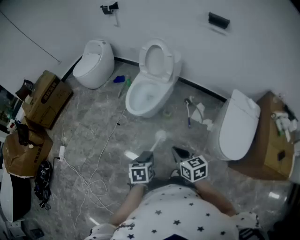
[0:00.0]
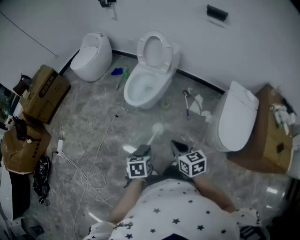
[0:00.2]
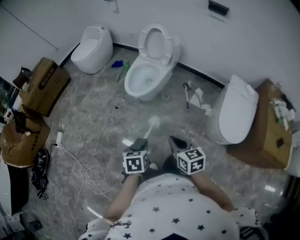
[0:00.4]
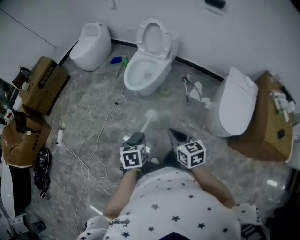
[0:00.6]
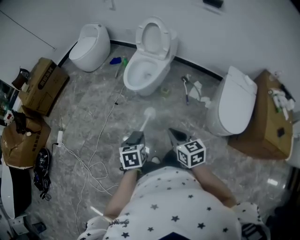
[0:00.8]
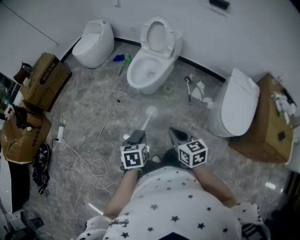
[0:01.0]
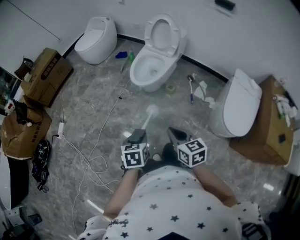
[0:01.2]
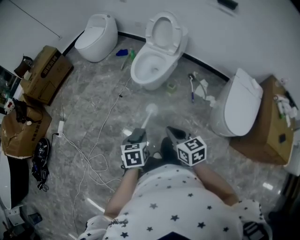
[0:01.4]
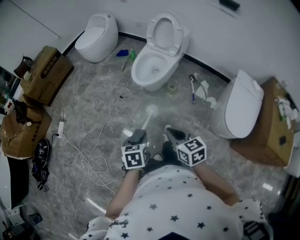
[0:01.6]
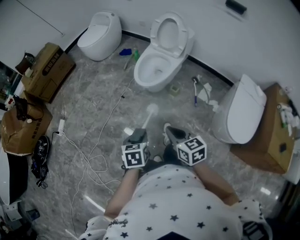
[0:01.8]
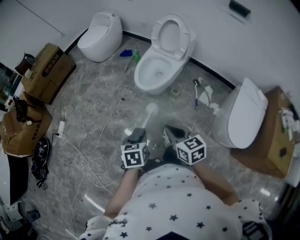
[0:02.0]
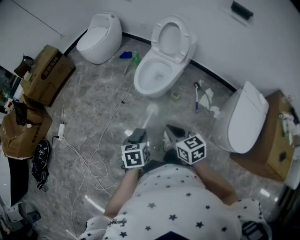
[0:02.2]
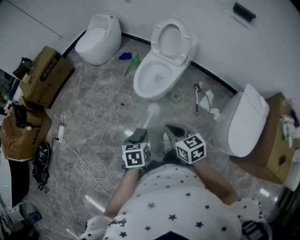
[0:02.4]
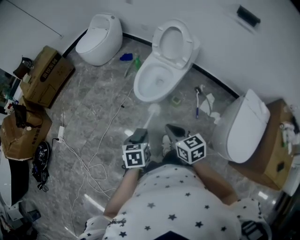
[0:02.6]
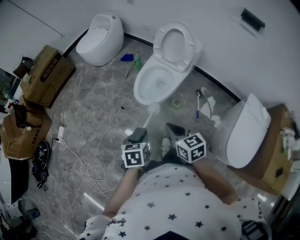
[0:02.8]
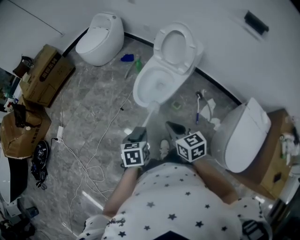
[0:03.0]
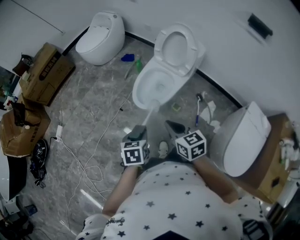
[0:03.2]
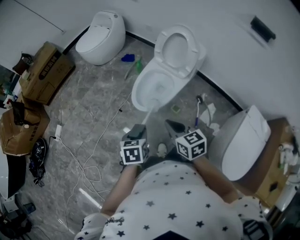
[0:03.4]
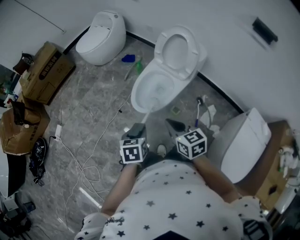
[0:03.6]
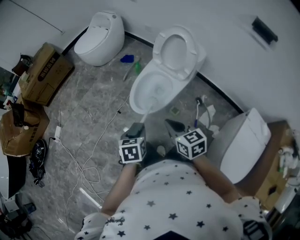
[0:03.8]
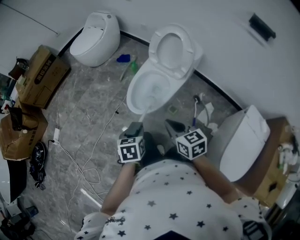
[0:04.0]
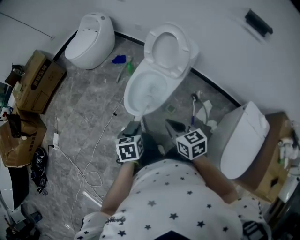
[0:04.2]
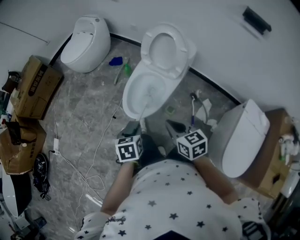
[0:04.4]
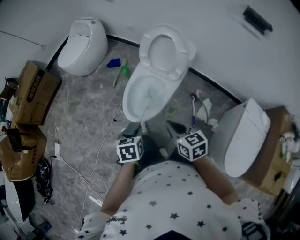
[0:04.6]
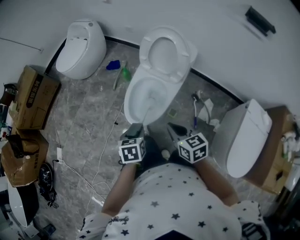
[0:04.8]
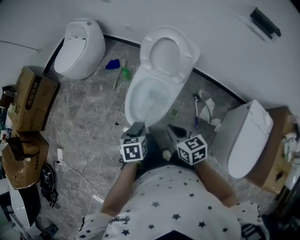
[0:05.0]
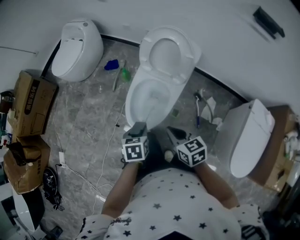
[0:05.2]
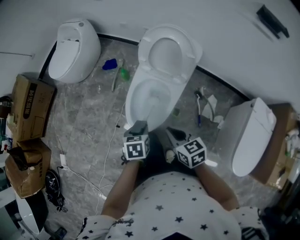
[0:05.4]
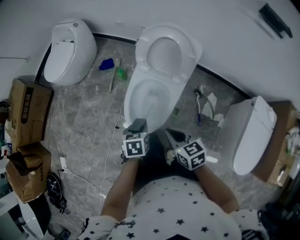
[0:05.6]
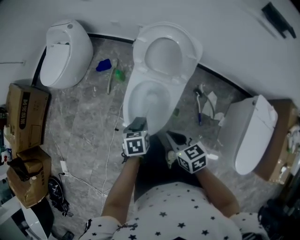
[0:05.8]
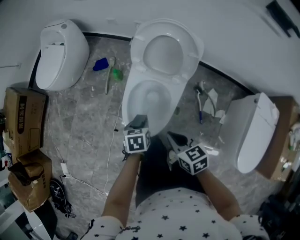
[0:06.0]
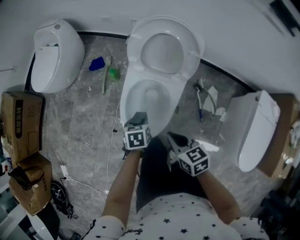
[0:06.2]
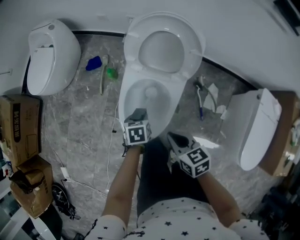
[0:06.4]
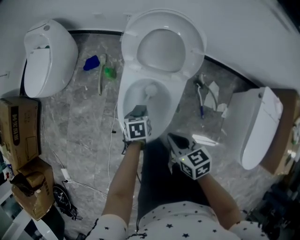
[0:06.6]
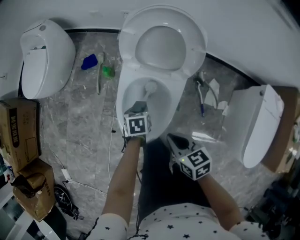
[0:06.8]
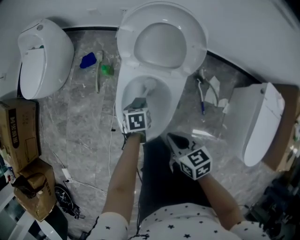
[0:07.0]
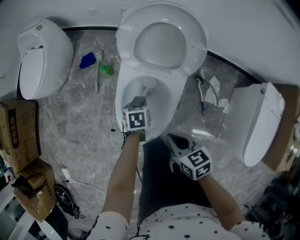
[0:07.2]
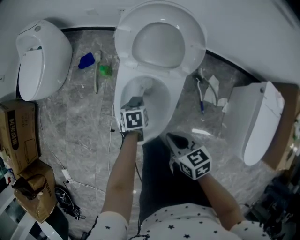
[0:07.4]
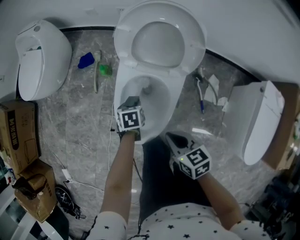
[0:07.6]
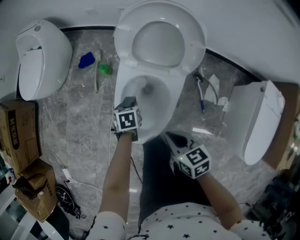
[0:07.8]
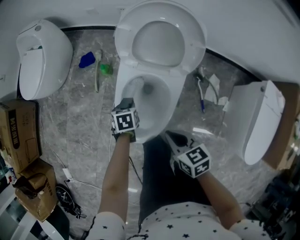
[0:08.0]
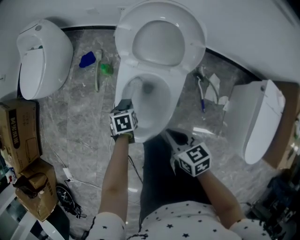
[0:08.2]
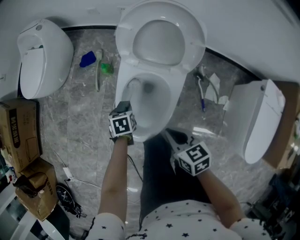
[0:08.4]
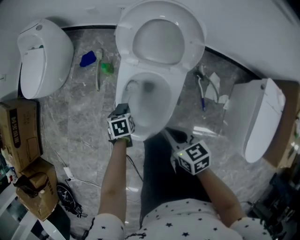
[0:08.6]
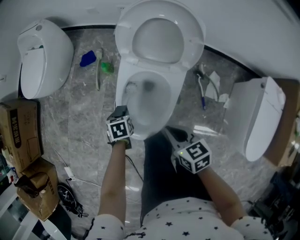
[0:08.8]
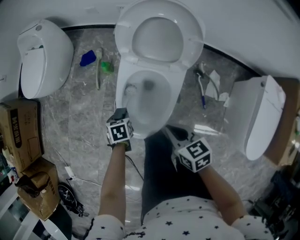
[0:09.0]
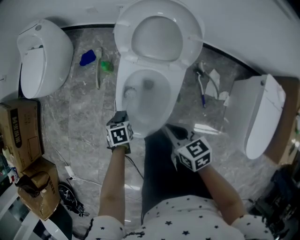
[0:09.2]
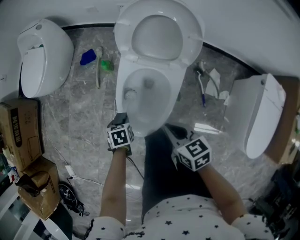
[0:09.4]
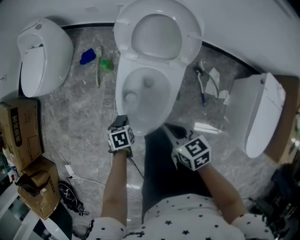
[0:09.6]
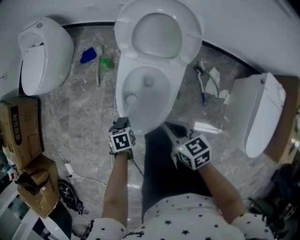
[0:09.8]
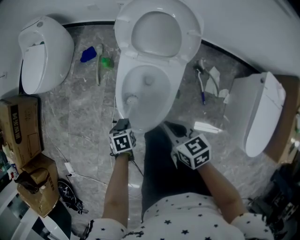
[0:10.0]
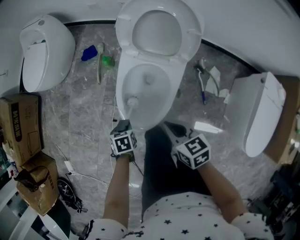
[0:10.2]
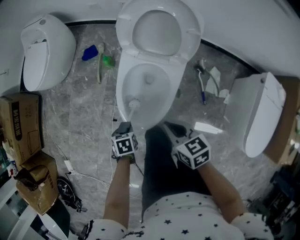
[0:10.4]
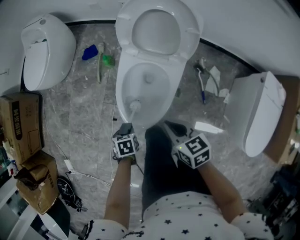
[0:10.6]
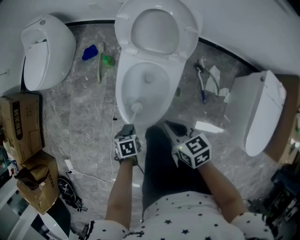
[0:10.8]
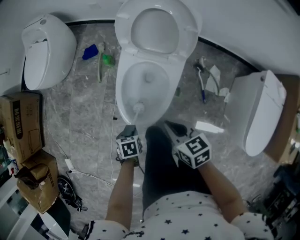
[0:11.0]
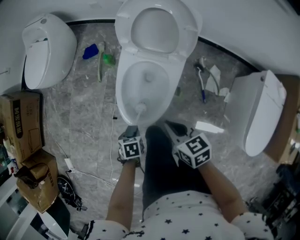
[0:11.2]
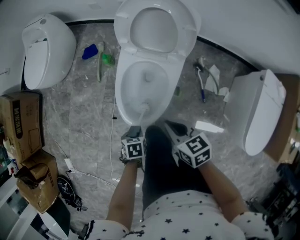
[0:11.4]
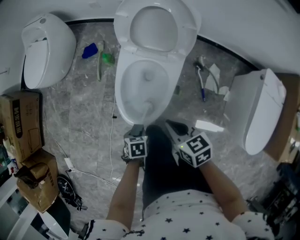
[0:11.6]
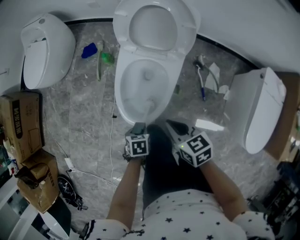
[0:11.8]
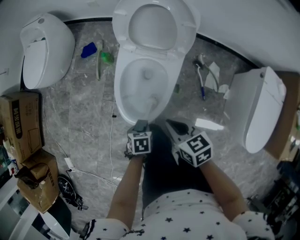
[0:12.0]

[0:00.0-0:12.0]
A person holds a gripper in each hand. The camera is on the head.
0:00.0 to 0:01.6: Both grippers move to the left, about 10 cm.
0:01.6 to 0:03.0: Both grippers move forward, approximately 25 cm.
0:03.0 to 0:04.4: Both grippers travel together forward and to the right, about 15 cm.
0:04.4 to 0:06.0: Both grippers move forward and downward, about 25 cm.
0:06.0 to 0:07.6: The right gripper is displaced downward by some 5 cm. The left gripper goes about 15 cm forward and downward.
0:07.6 to 0:09.0: The left gripper ends up some 10 cm from where it was.
0:09.0 to 0:10.4: The left gripper changes place by roughly 10 cm.
0:10.4 to 0:12.0: The left gripper changes place by some 10 cm.

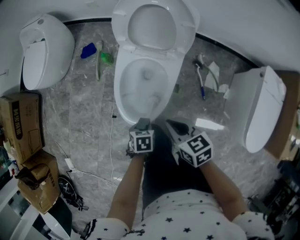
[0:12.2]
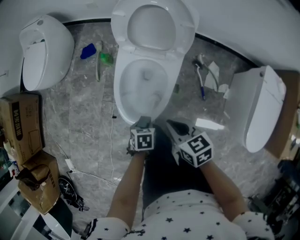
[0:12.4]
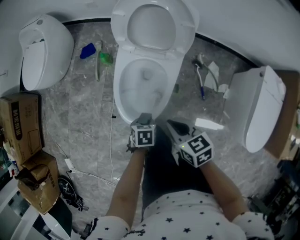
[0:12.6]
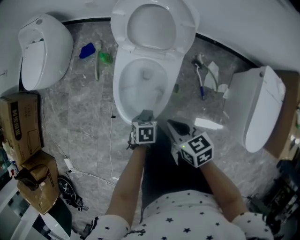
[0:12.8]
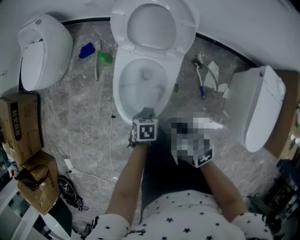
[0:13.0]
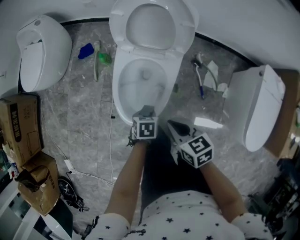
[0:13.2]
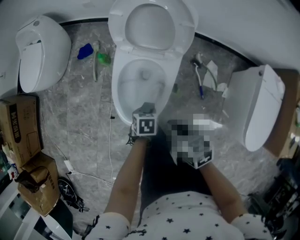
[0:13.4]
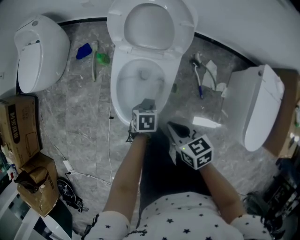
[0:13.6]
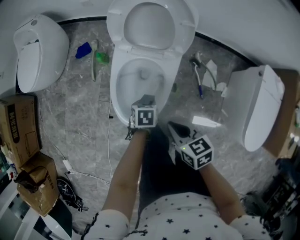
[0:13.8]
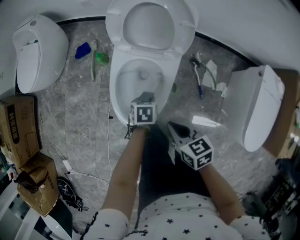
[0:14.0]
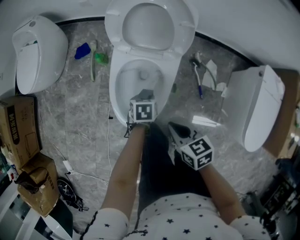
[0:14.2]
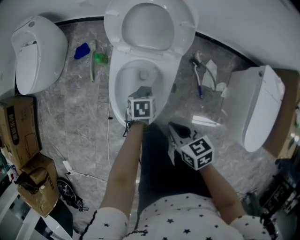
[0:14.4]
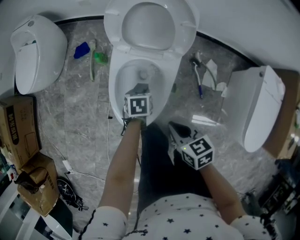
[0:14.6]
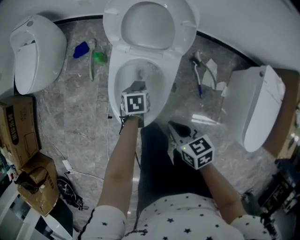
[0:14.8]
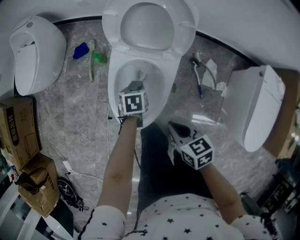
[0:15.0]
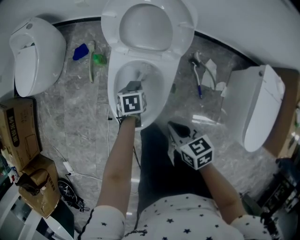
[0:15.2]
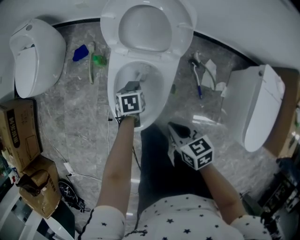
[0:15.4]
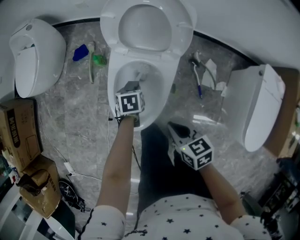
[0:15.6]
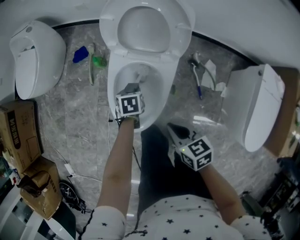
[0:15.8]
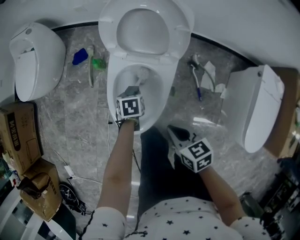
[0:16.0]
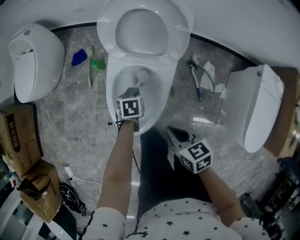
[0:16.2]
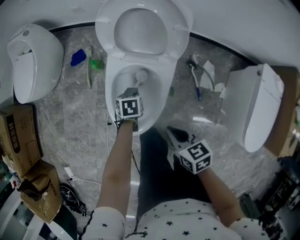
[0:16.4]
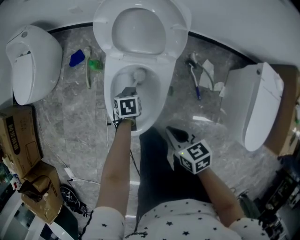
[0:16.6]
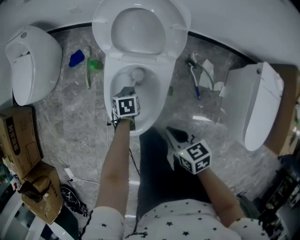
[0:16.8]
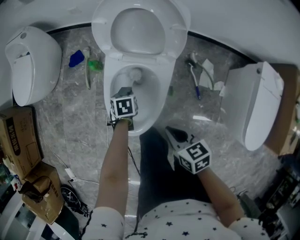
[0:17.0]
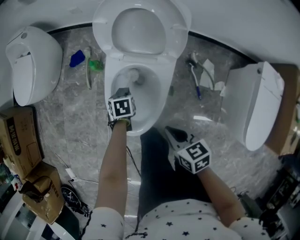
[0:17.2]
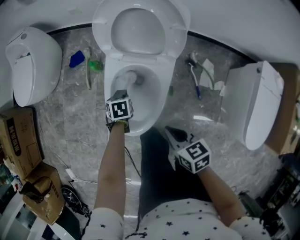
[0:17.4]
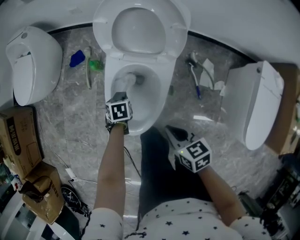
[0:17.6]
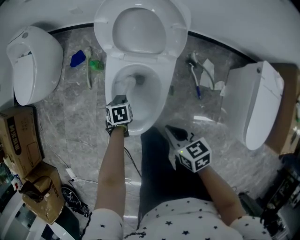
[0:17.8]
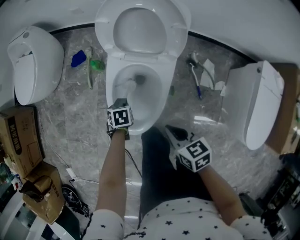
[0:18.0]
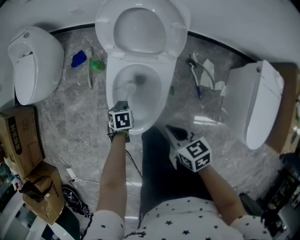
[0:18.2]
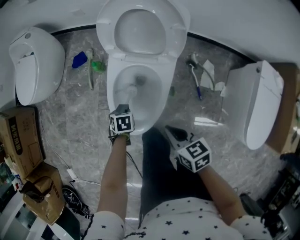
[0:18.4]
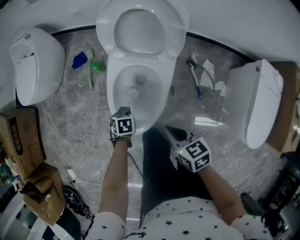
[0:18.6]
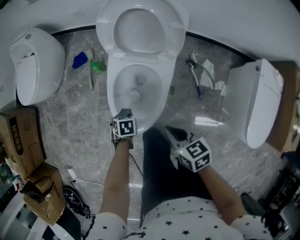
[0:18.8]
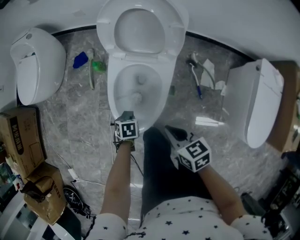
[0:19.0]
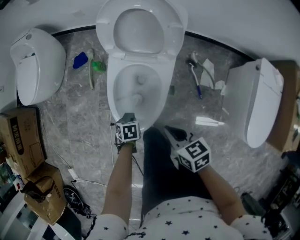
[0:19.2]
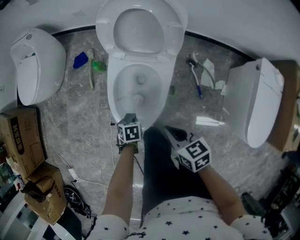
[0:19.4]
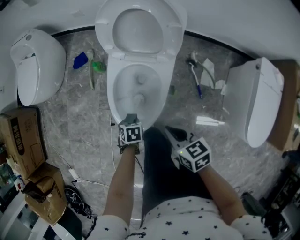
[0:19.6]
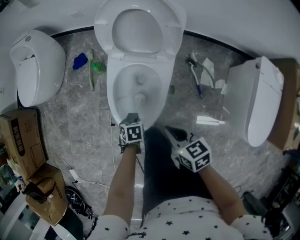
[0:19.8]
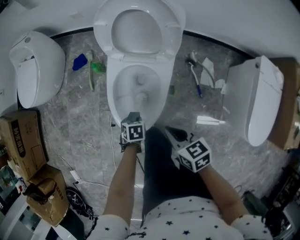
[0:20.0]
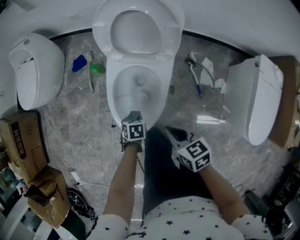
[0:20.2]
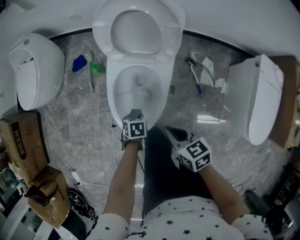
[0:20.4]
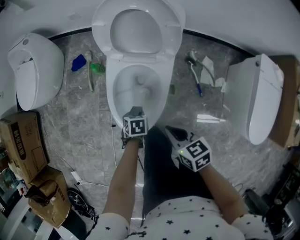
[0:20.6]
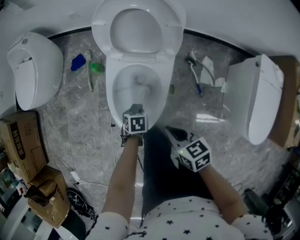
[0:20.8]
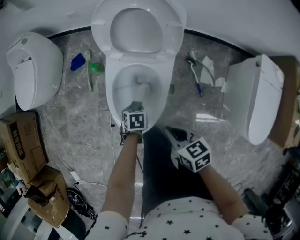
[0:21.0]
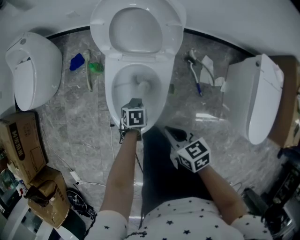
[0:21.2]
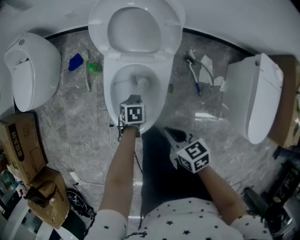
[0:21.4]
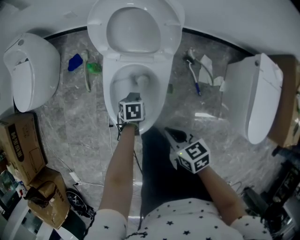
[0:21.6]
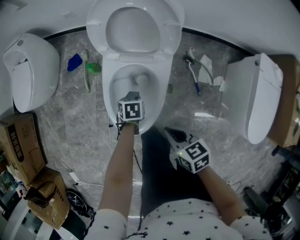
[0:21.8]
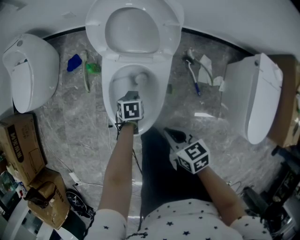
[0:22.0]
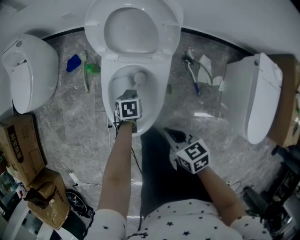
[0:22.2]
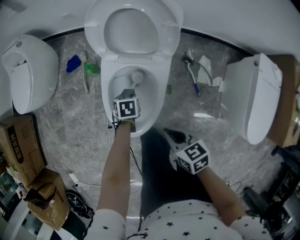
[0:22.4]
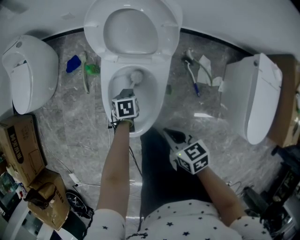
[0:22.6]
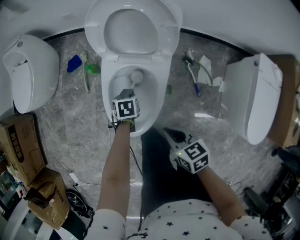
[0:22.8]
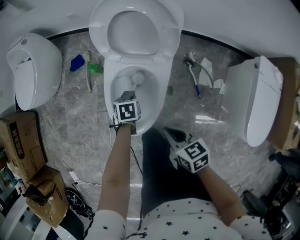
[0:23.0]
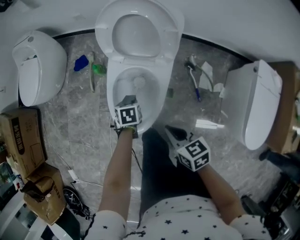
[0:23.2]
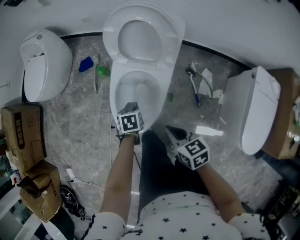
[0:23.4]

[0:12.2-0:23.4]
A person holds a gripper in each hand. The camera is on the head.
0:12.2 to 0:13.8: The left gripper shifts by some 10 cm.
0:13.8 to 0:15.4: The left gripper moves forward, some 10 cm.
0:15.4 to 0:17.0: There are only small adjustments of the grippers.
0:17.0 to 0:18.6: The left gripper ends up some 10 cm from where it was.
0:18.6 to 0:20.2: The left gripper shifts by roughly 5 cm.
0:20.2 to 0:21.8: The left gripper ends up roughly 10 cm from where it was.
0:21.8 to 0:23.4: The right gripper shifts by about 5 cm, while the left gripper goes some 10 cm upward.

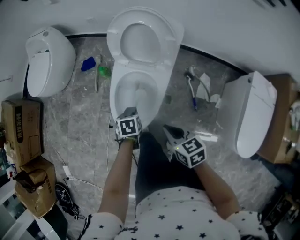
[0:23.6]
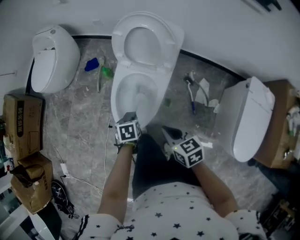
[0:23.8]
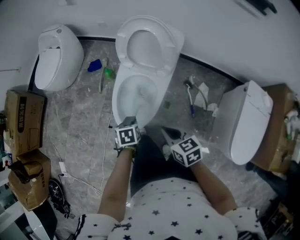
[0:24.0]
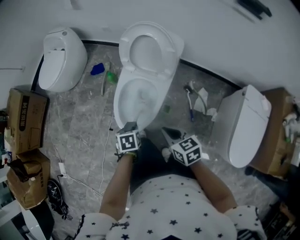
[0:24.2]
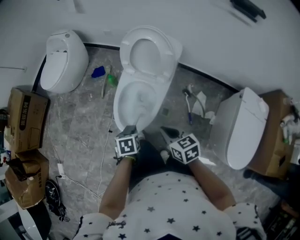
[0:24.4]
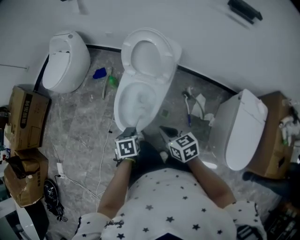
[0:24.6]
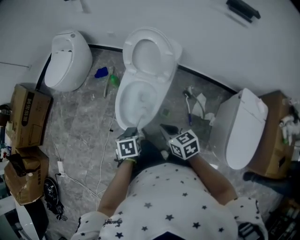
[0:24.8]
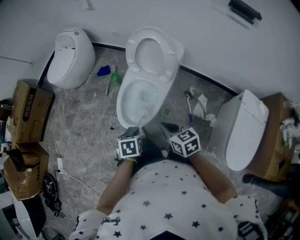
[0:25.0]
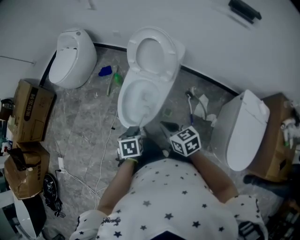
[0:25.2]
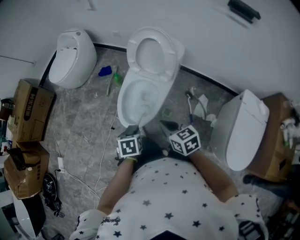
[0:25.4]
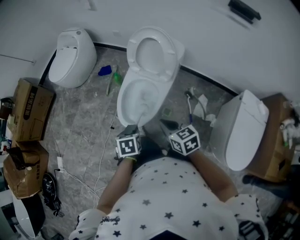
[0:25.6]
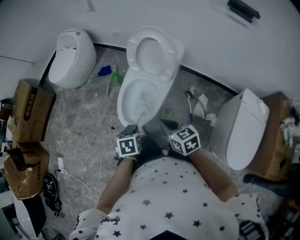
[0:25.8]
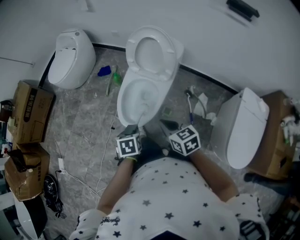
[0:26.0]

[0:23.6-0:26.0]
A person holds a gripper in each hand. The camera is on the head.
0:23.6 to 0:24.8: The left gripper heads backward and upward, covering approximately 20 cm, while the right gripper travels upward and backward by about 10 cm.
0:24.8 to 0:26.0: The grippers make only small movements.
